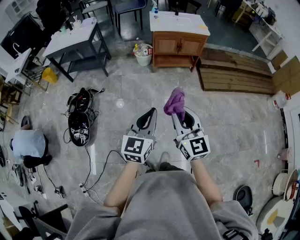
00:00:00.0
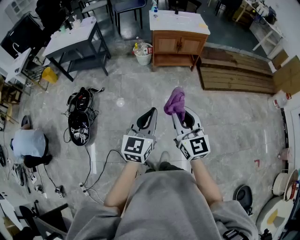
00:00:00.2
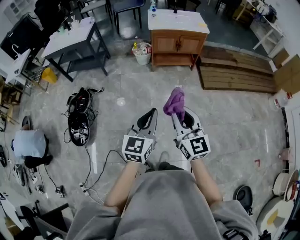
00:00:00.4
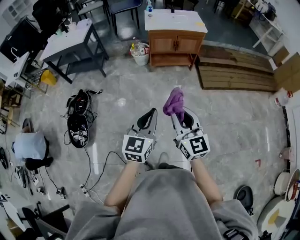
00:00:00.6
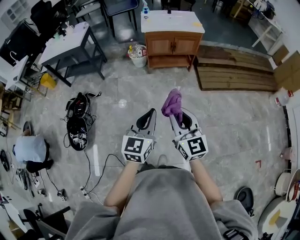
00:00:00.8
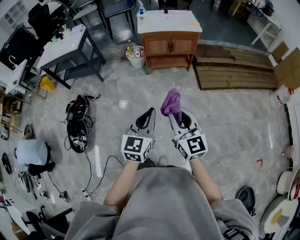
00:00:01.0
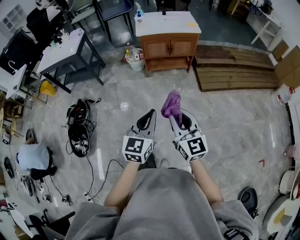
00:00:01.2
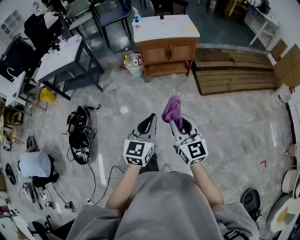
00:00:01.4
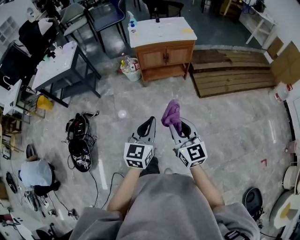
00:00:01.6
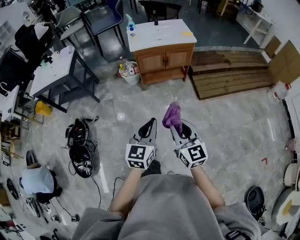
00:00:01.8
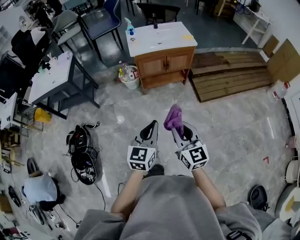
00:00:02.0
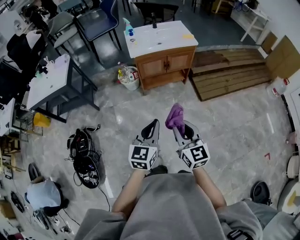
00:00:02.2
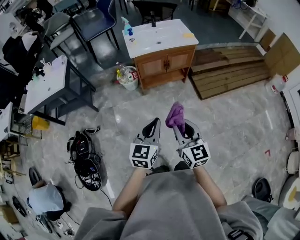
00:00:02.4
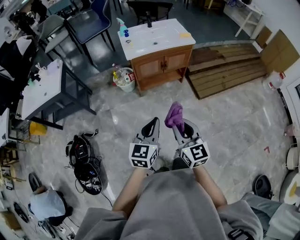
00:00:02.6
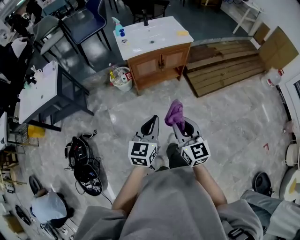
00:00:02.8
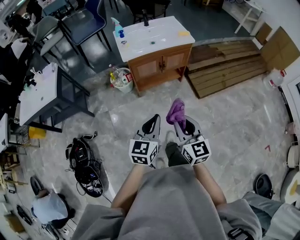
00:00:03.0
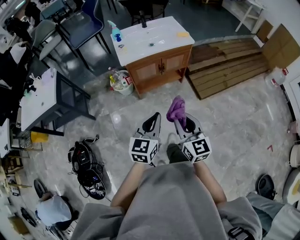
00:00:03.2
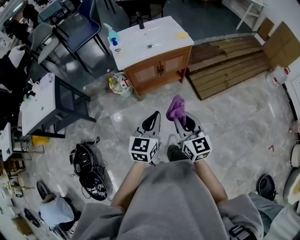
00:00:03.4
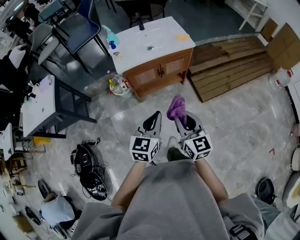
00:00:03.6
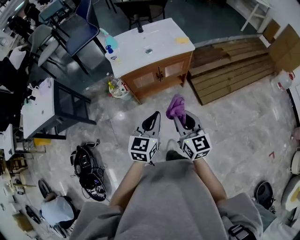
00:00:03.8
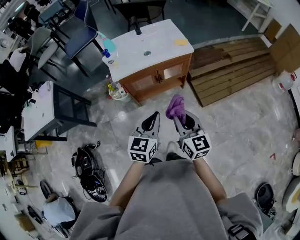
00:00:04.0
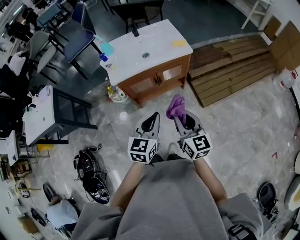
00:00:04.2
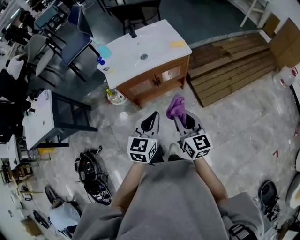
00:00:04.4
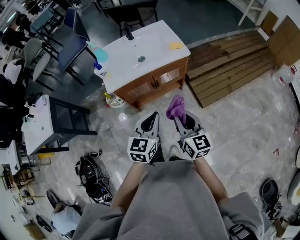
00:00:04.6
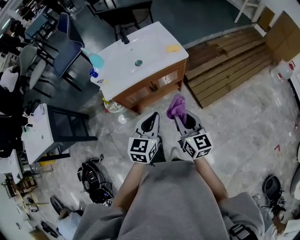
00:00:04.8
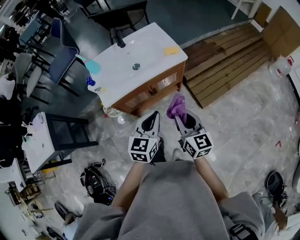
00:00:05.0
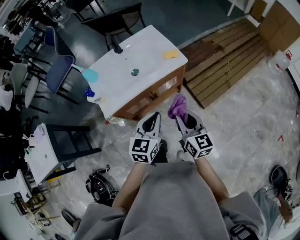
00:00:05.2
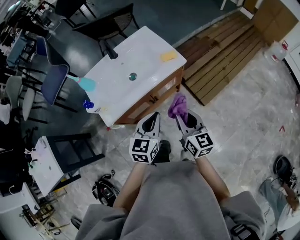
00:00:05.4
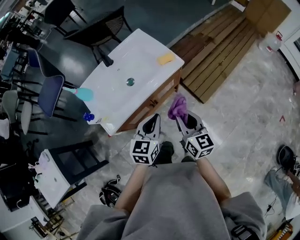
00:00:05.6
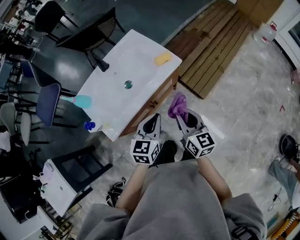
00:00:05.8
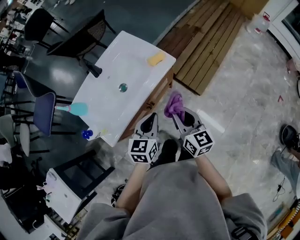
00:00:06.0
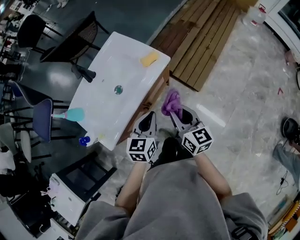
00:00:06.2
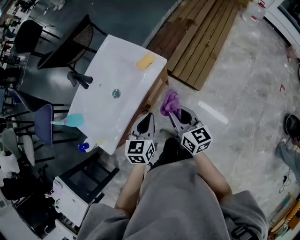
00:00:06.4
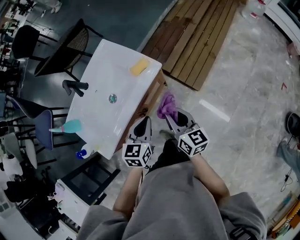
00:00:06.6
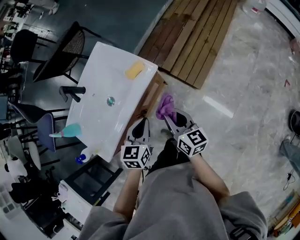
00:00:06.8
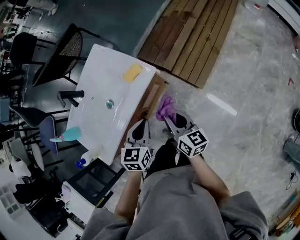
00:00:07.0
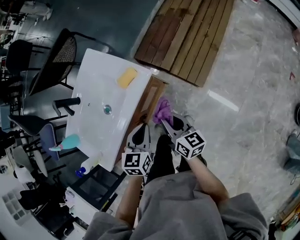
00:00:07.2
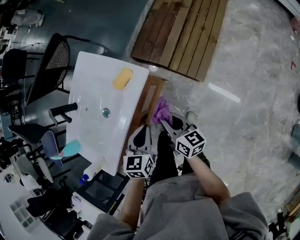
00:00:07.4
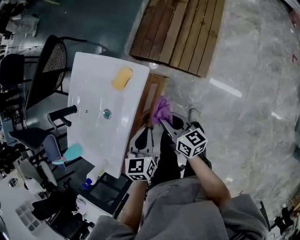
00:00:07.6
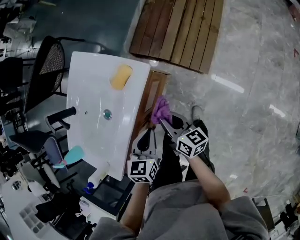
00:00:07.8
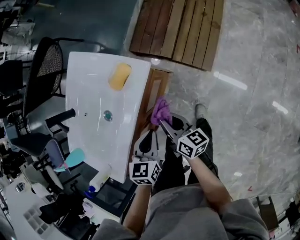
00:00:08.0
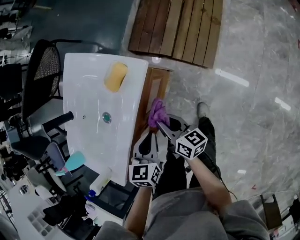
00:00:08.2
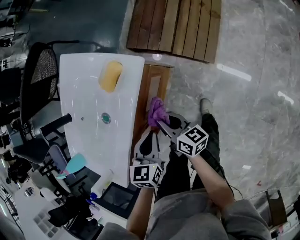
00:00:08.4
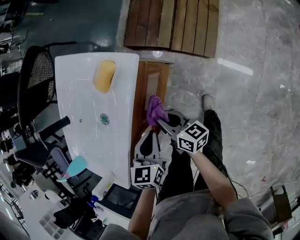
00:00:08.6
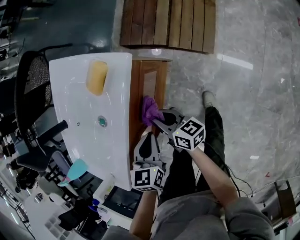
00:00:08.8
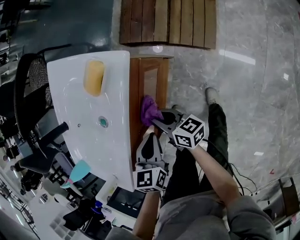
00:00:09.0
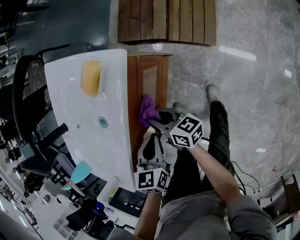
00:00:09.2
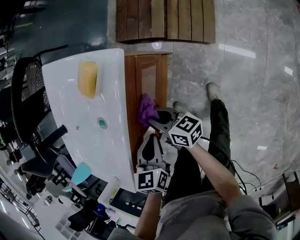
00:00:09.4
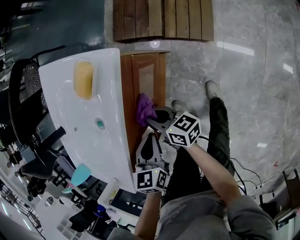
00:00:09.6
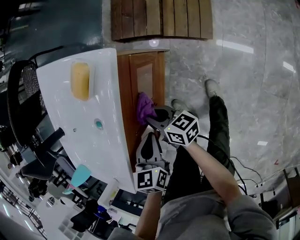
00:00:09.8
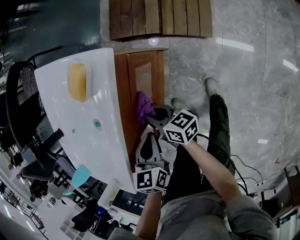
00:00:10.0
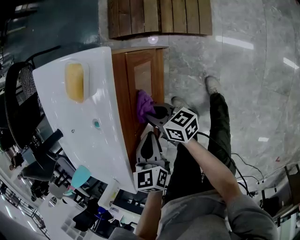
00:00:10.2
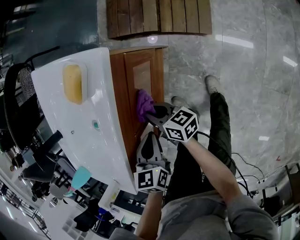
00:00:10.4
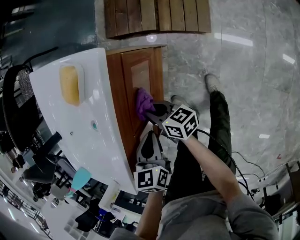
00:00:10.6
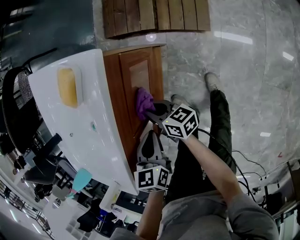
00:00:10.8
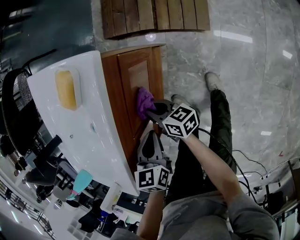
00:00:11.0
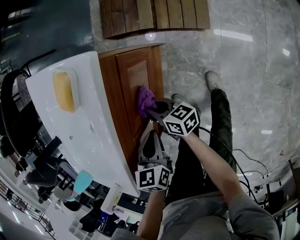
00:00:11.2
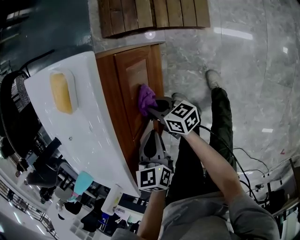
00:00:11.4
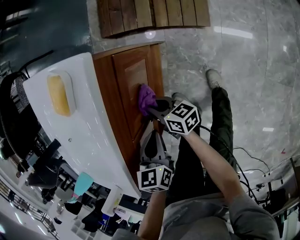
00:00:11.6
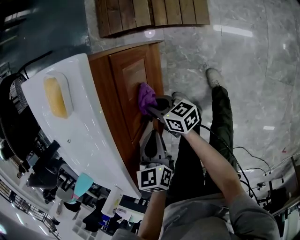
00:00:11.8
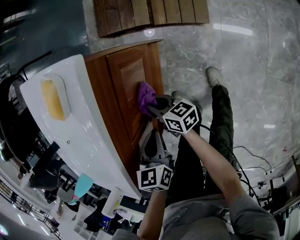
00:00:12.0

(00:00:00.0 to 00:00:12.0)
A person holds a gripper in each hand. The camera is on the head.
00:00:00.0 - 00:00:01.6: The two grippers go approximately 20 cm forward and to the right.
00:00:01.6 - 00:00:03.0: Both grippers move forward, roughly 20 cm.
00:00:03.0 - 00:00:04.4: Both grippers travel together forward, roughly 25 cm.
00:00:04.4 - 00:00:06.0: The right gripper changes place by approximately 25 cm, and rotates approximately 30 degrees. The left gripper moves some 25 cm, and rotates roughly 30 degrees.
00:00:06.0 - 00:00:07.6: The left gripper is displaced downward, forward and to the right by roughly 15 cm. The right gripper goes some 20 cm downward and forward, and turns by about 30 degrees.
00:00:07.6 - 00:00:09.0: The left gripper travels downward by approximately 10 cm. The right gripper travels downward and to the left by some 15 cm.
00:00:09.0 - 00:00:10.4: The right gripper changes place by approximately 5 cm.
00:00:10.4 - 00:00:12.0: The right gripper is displaced downward by about 10 cm.

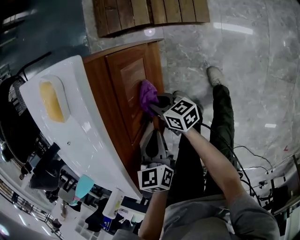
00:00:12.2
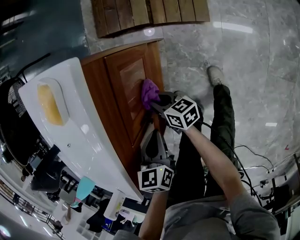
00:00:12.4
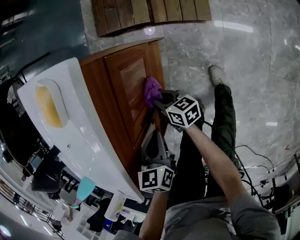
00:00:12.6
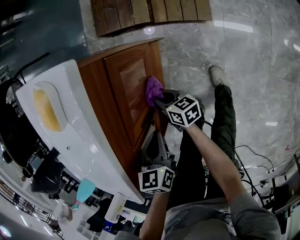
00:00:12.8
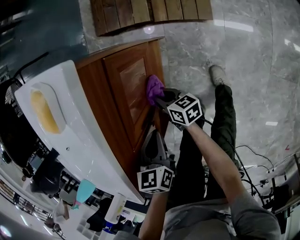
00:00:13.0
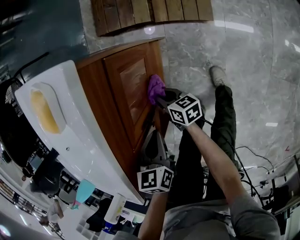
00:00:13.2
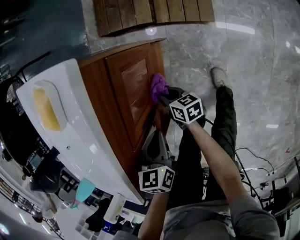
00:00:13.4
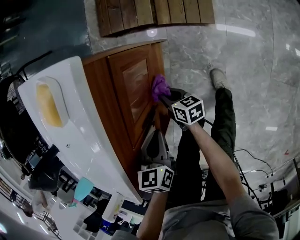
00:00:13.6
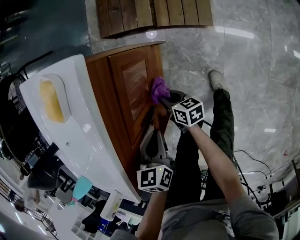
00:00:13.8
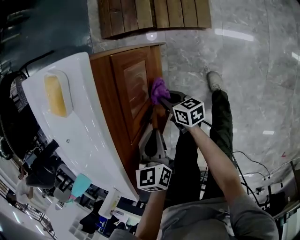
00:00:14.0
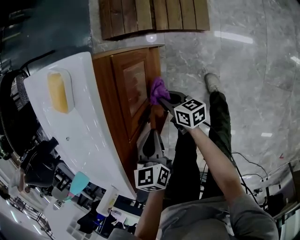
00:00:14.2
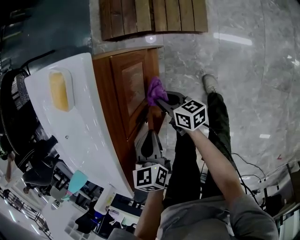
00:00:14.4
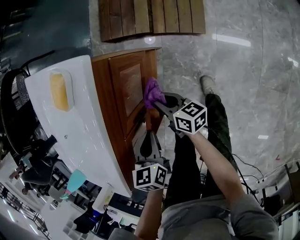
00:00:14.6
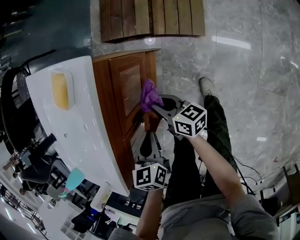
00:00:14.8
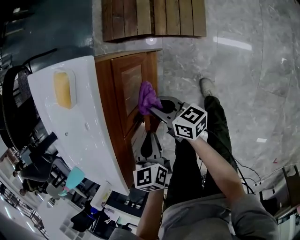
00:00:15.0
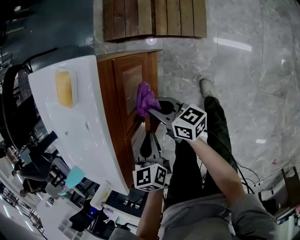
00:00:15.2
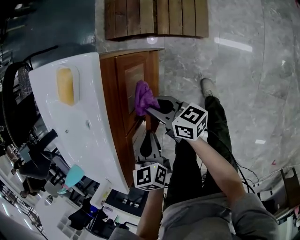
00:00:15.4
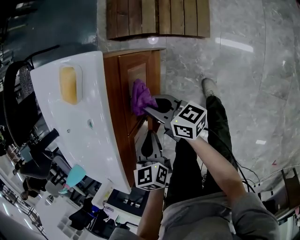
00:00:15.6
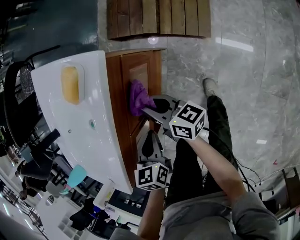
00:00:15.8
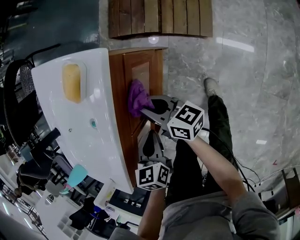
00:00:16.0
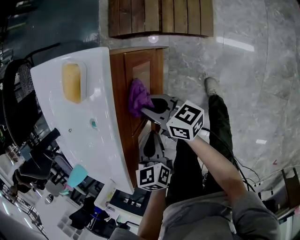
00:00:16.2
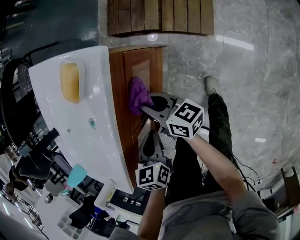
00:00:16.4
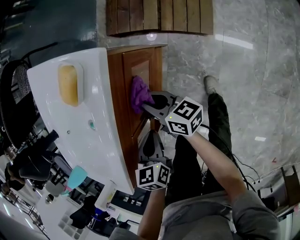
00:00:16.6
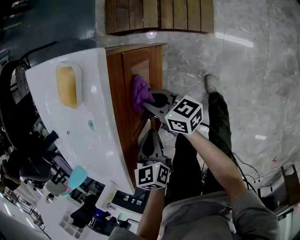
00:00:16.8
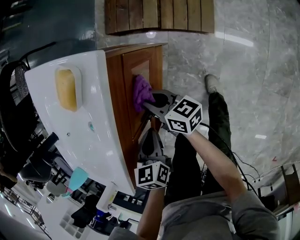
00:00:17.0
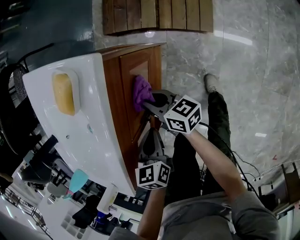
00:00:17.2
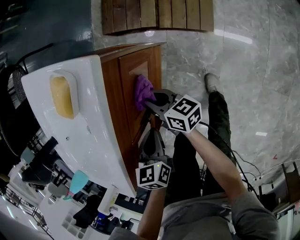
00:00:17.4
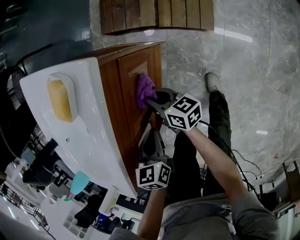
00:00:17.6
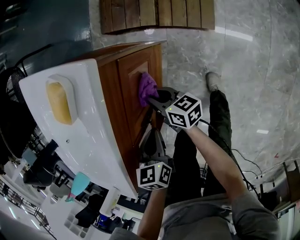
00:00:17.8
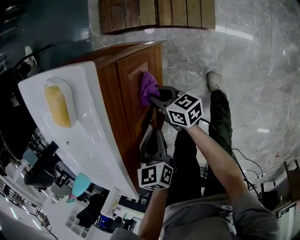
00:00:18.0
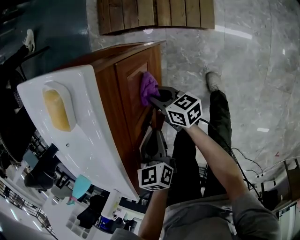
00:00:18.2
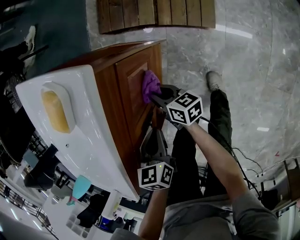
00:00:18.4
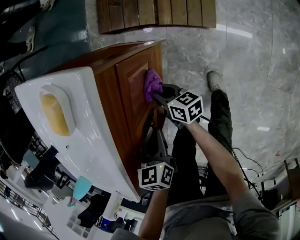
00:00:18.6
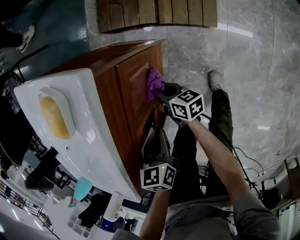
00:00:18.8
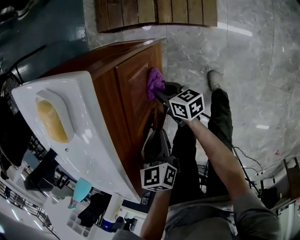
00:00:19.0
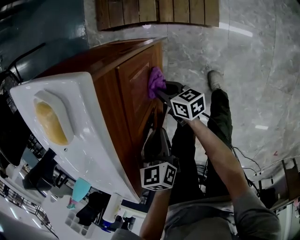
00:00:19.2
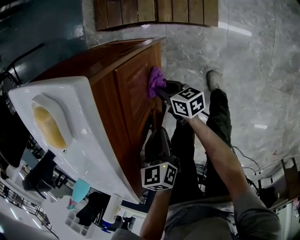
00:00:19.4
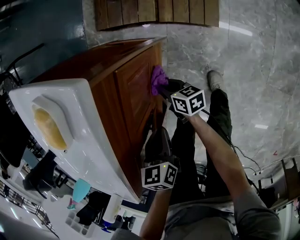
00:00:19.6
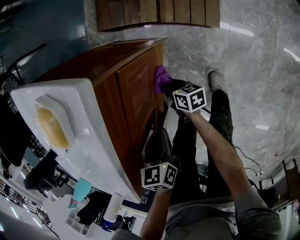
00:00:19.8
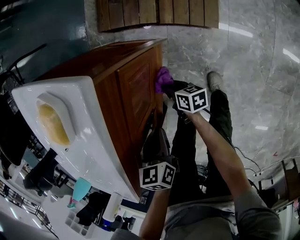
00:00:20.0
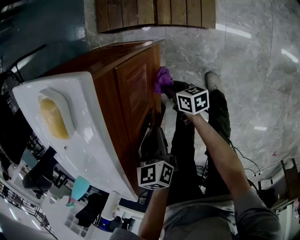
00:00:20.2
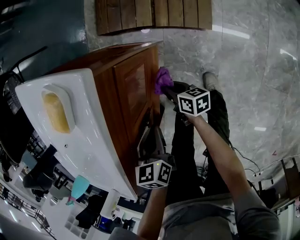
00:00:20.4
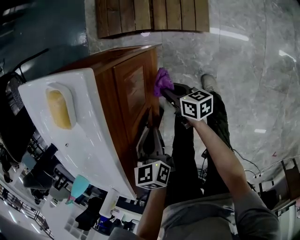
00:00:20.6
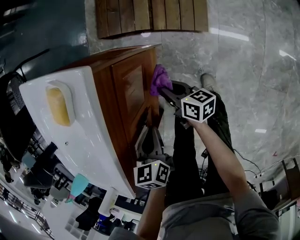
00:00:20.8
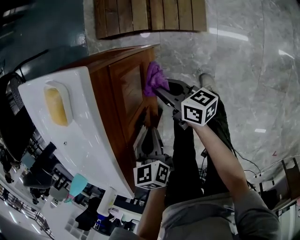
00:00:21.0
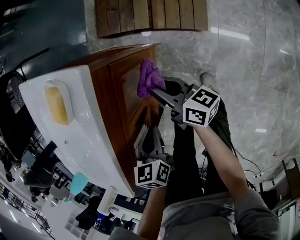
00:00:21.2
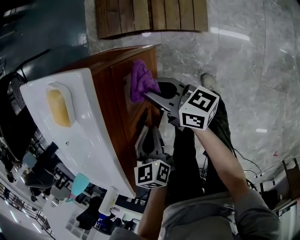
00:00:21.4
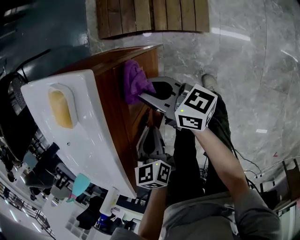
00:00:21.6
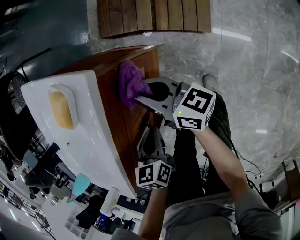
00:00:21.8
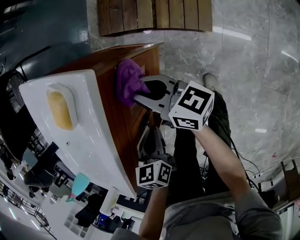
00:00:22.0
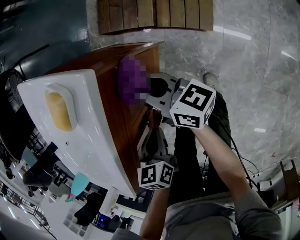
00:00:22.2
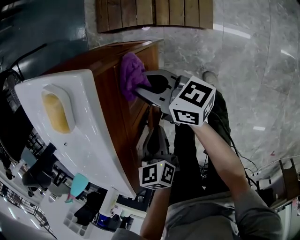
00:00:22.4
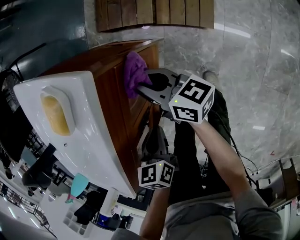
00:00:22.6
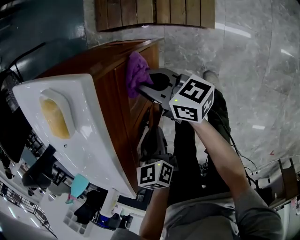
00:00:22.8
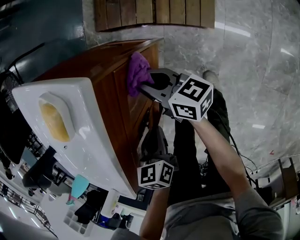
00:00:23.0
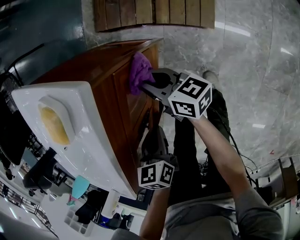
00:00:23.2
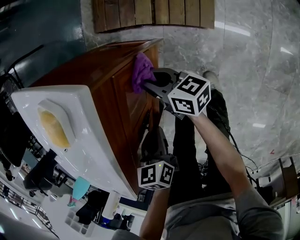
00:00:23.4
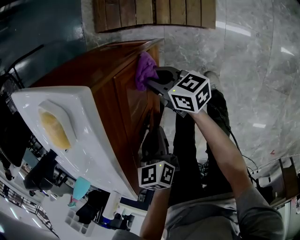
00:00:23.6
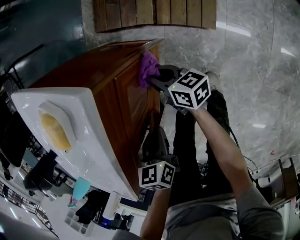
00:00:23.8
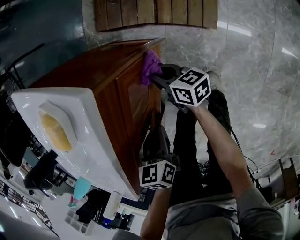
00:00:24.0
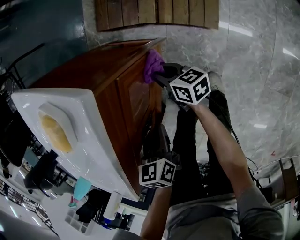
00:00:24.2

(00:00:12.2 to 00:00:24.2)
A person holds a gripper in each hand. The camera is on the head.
00:00:12.2 - 00:00:13.8: The right gripper moves downward, some 5 cm.
00:00:13.8 - 00:00:15.2: The right gripper goes roughly 15 cm upward, and changes its angle by some 20 degrees.
00:00:15.2 - 00:00:16.6: The right gripper shifts by about 5 cm.
00:00:16.6 - 00:00:18.2: The right gripper moves downward, roughly 10 cm.
00:00:18.2 - 00:00:19.8: The right gripper heads downward, covering approximately 10 cm.
00:00:19.8 - 00:00:21.2: The right gripper shifts some 20 cm upward, and turns by approximately 30 degrees.
00:00:21.2 - 00:00:22.6: The right gripper goes some 5 cm forward.
00:00:22.6 - 00:00:24.2: The right gripper moves downward, some 15 cm.
